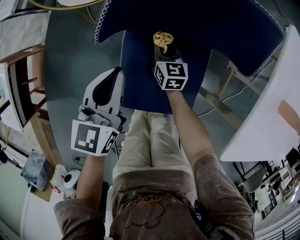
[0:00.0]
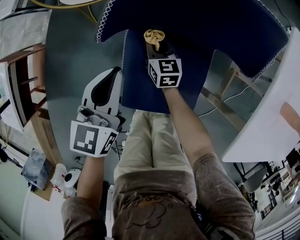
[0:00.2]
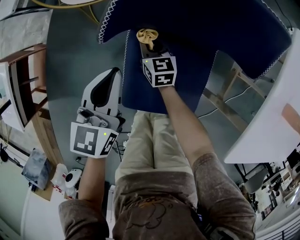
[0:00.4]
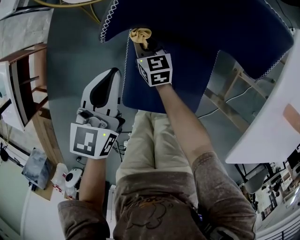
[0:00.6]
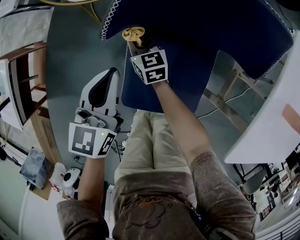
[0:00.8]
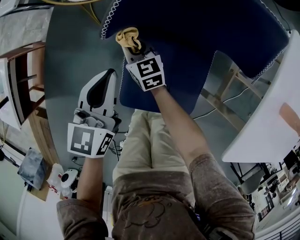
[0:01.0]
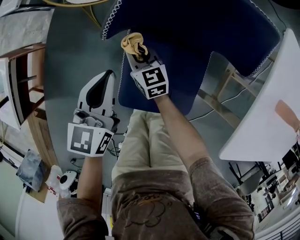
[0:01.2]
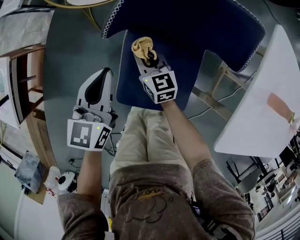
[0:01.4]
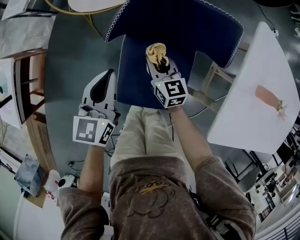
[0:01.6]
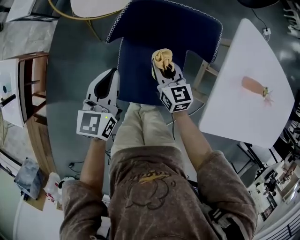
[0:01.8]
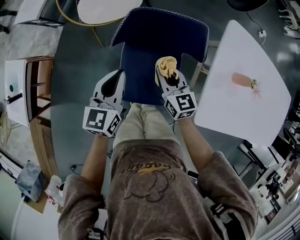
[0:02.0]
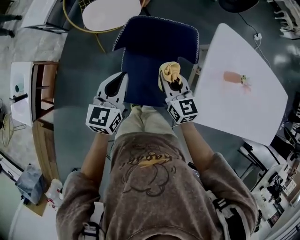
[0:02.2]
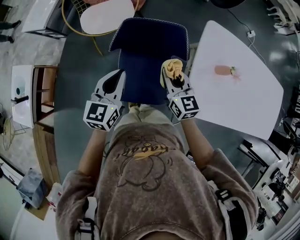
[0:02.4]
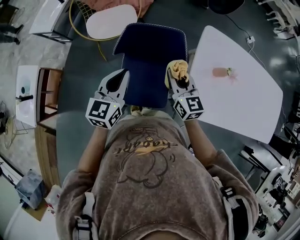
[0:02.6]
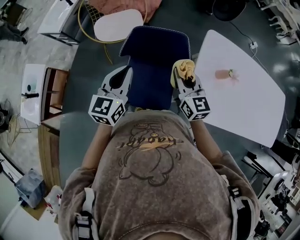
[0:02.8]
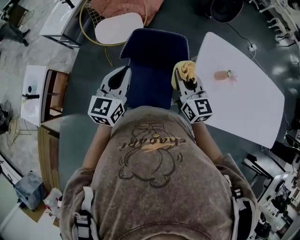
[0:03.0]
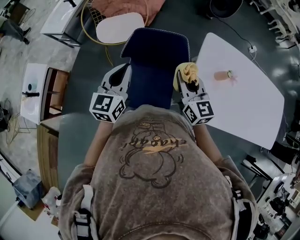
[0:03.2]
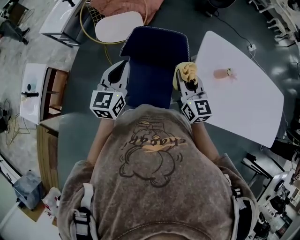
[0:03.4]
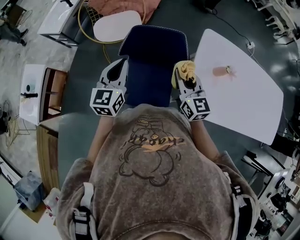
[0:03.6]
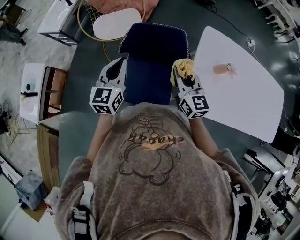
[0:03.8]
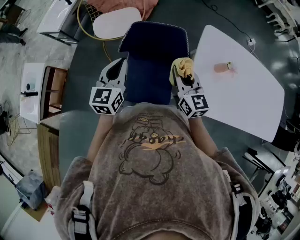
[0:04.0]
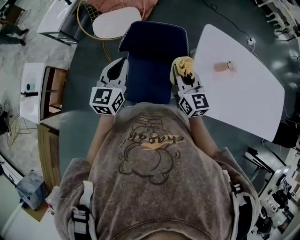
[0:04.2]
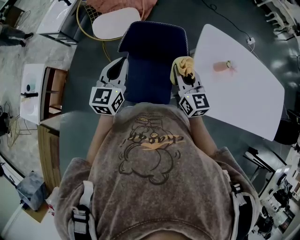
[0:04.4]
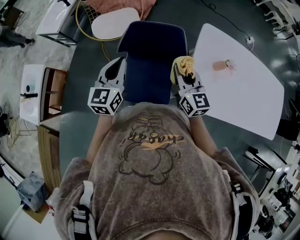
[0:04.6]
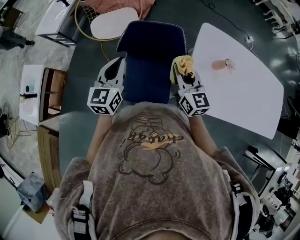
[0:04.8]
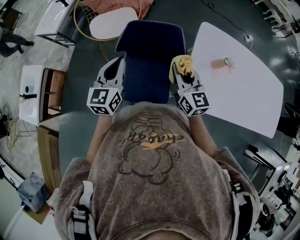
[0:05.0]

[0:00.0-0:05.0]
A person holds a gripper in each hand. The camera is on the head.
0.0 to 1.6 s: The right gripper moves upward, roughly 15 cm. The left gripper shifts some 5 cm upward.
1.6 to 3.4 s: Both grippers travel together upward, roughly 30 cm. The right gripper turns by about 20 degrees.
3.4 to 5.0 s: The grippers make only small movements.

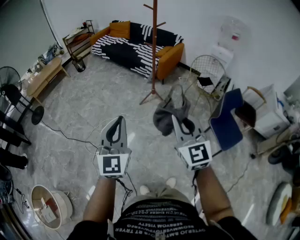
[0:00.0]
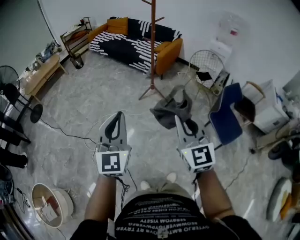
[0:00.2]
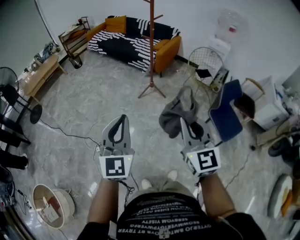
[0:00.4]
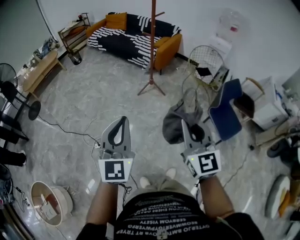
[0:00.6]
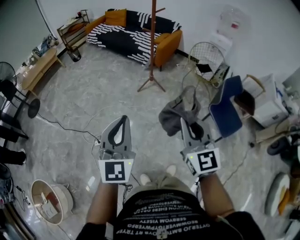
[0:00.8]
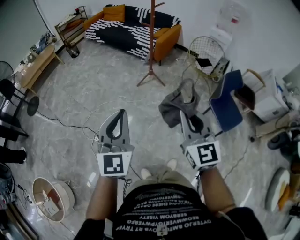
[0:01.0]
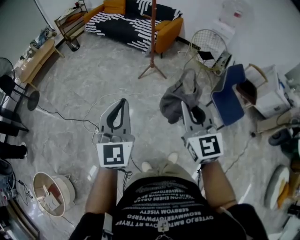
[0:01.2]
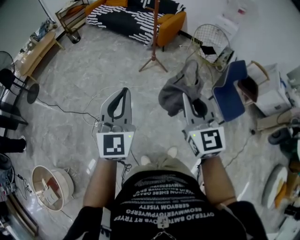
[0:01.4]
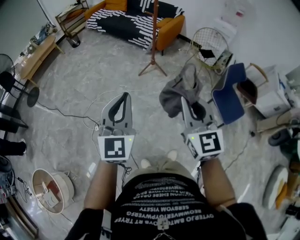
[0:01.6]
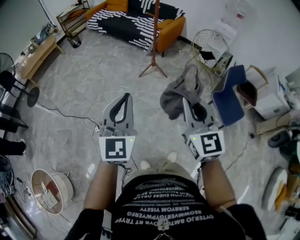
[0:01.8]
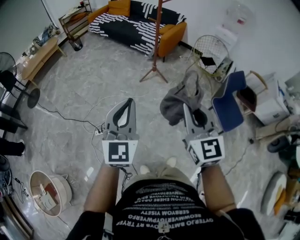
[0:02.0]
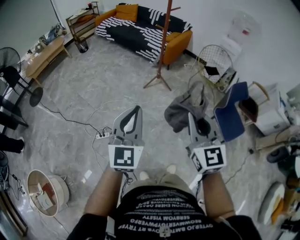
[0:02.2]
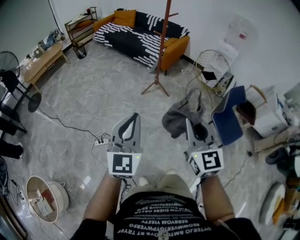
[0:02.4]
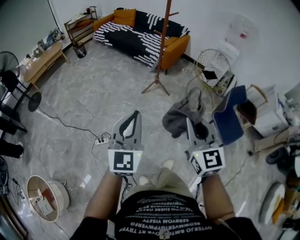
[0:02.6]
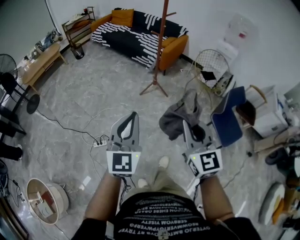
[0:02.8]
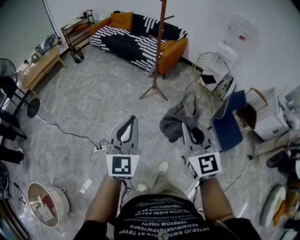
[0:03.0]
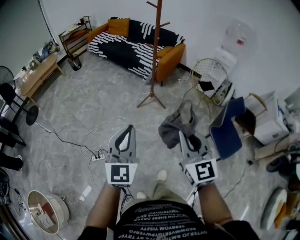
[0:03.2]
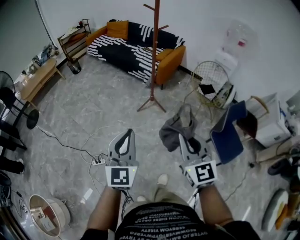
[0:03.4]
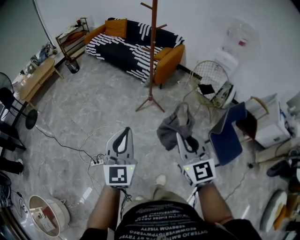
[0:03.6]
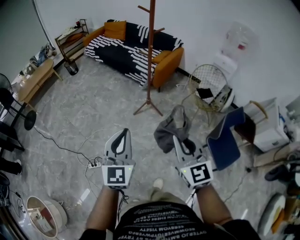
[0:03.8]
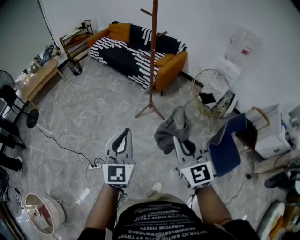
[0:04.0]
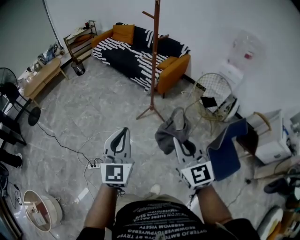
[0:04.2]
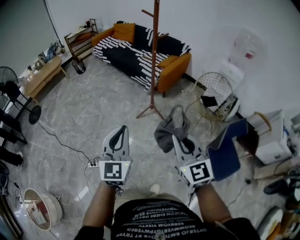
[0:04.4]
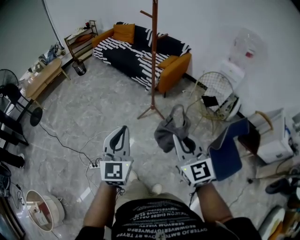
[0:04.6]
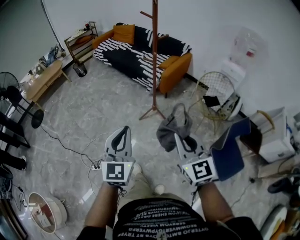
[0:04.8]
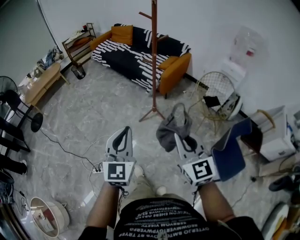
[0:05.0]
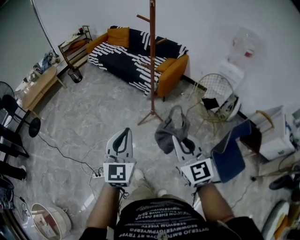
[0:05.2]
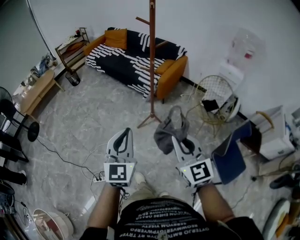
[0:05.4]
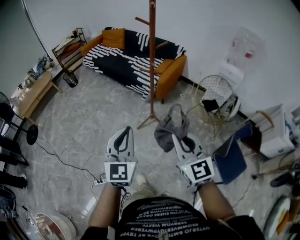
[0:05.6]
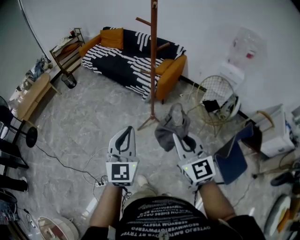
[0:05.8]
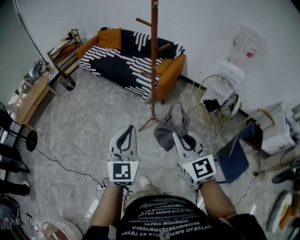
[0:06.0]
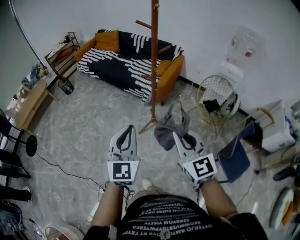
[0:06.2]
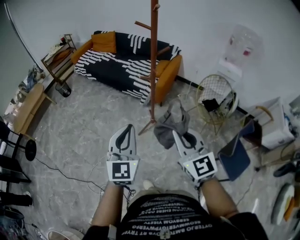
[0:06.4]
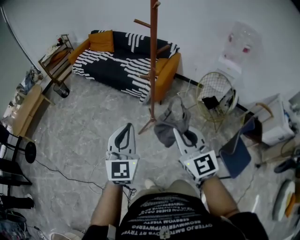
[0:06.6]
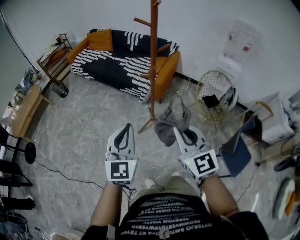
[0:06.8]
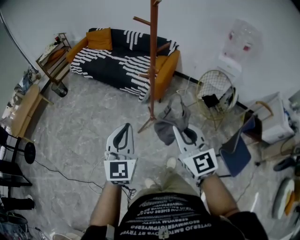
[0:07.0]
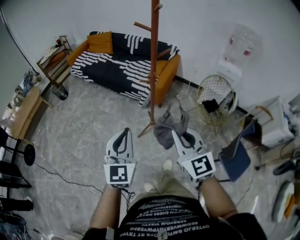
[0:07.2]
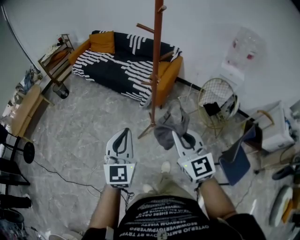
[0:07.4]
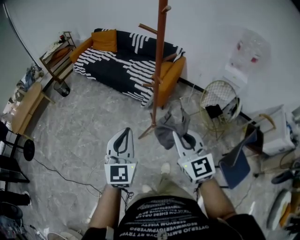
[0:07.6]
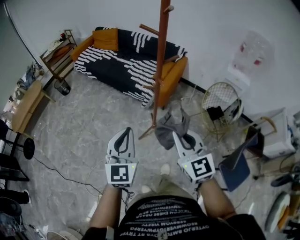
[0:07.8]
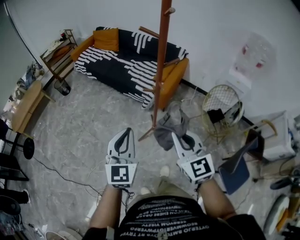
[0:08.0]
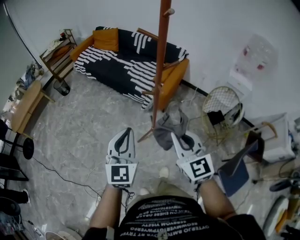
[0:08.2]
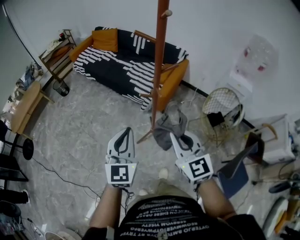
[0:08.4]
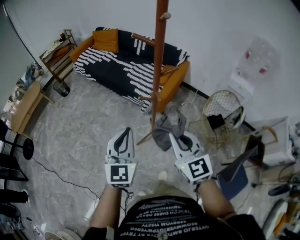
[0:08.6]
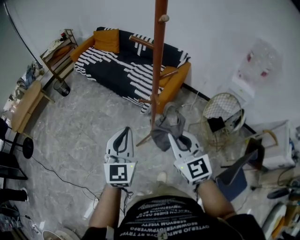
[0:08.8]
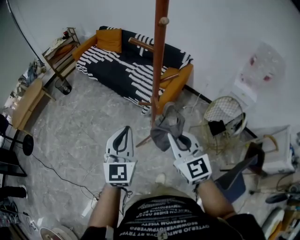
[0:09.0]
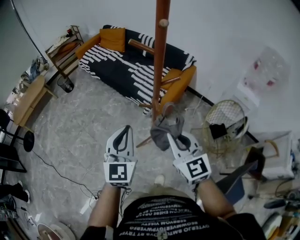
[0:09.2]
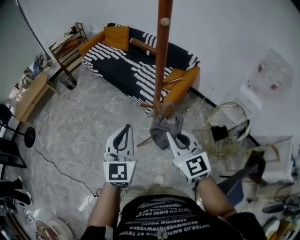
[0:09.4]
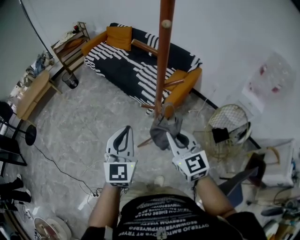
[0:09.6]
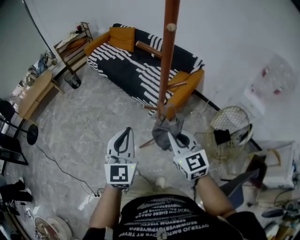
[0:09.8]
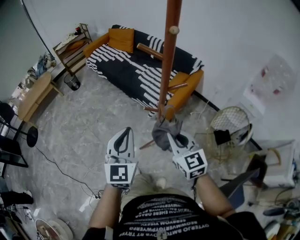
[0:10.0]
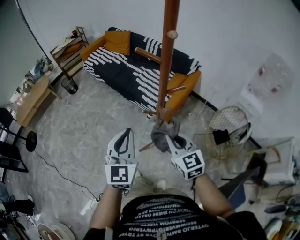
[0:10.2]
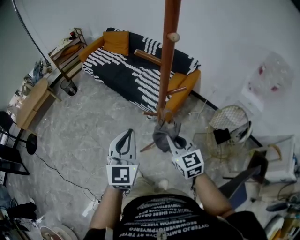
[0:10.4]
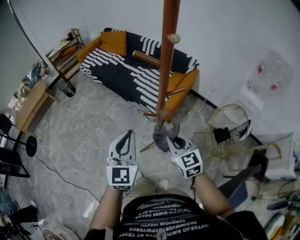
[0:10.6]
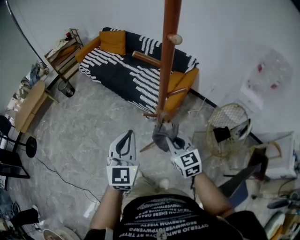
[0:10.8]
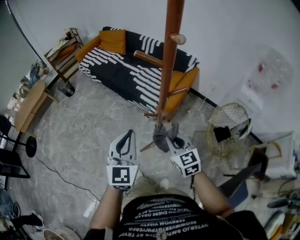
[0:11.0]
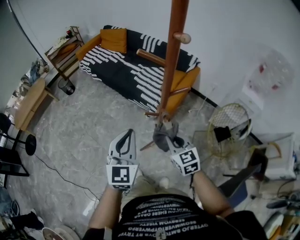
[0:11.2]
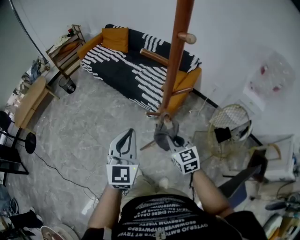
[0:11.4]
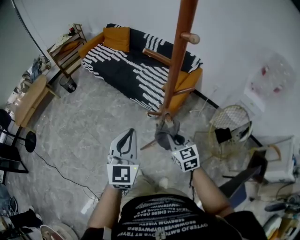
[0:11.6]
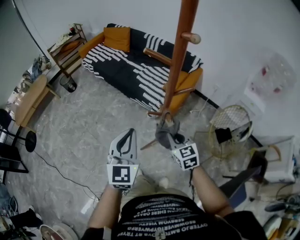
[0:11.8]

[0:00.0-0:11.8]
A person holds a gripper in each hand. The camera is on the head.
0.0 to 1.4 s: The right gripper shifts by some 5 cm.
1.4 to 3.0 s: Both grippers move forward, roughly 5 cm.
3.0 to 4.4 s: The two grippers go roughly 20 cm forward and to the right.
4.4 to 6.0 s: Both grippers travel together forward, about 20 cm.
6.0 to 7.4 s: The grippers both shift forward by roughly 10 cm.
7.4 to 8.8 s: The right gripper goes some 15 cm forward. The left gripper heads forward and to the right, covering some 15 cm.
8.8 to 10.4 s: The left gripper shifts approximately 5 cm forward. The right gripper goes about 10 cm forward and downward.
10.4 to 11.8 s: The right gripper travels downward by approximately 10 cm.

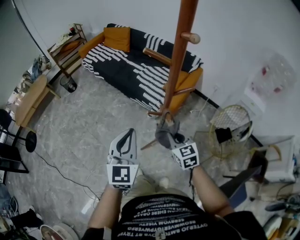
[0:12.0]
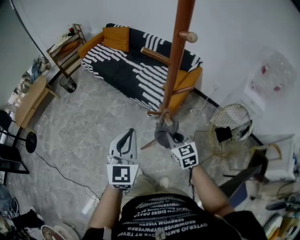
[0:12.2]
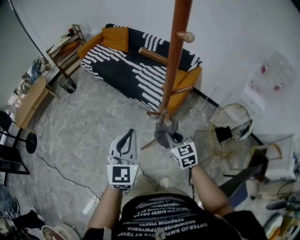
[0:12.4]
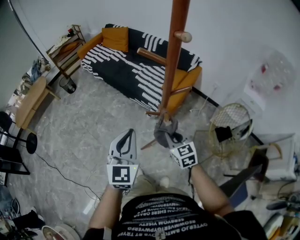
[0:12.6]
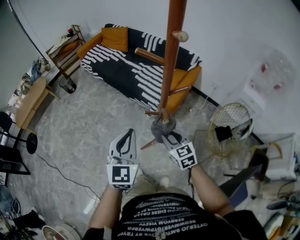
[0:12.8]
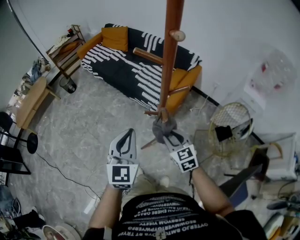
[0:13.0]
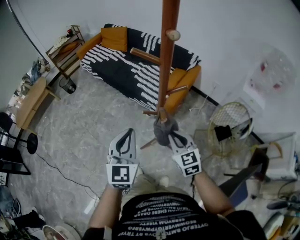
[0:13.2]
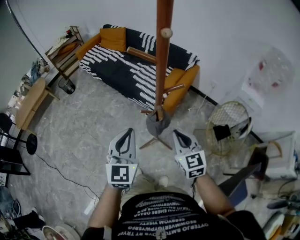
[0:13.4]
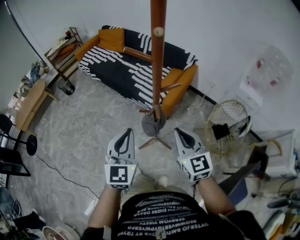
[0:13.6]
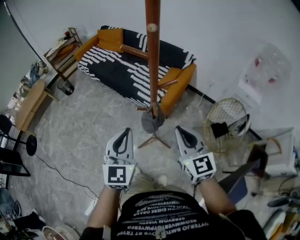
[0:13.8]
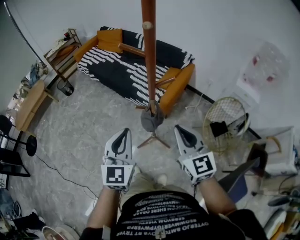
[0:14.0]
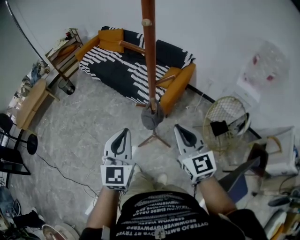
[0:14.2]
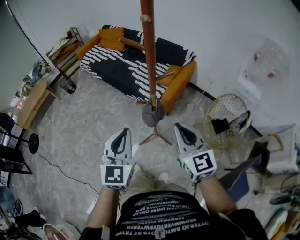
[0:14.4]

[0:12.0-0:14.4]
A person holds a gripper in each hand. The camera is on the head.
12.0 to 13.2 s: The right gripper moves about 5 cm.
13.2 to 14.4 s: The left gripper travels backward by some 5 cm. Meanwhile the right gripper shifts approximately 15 cm upward and backward.

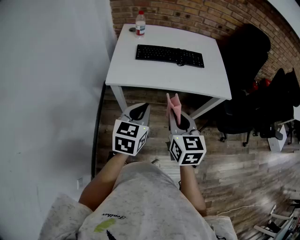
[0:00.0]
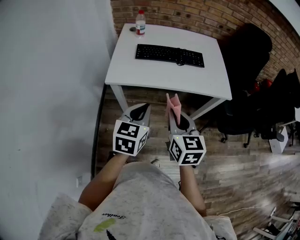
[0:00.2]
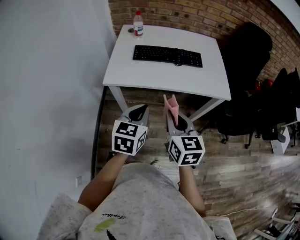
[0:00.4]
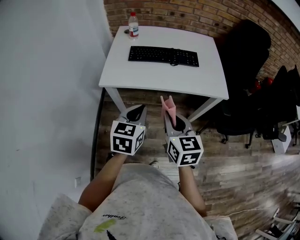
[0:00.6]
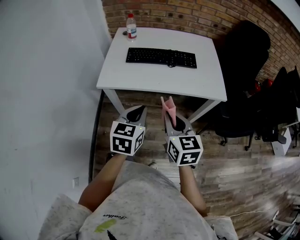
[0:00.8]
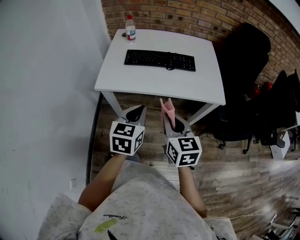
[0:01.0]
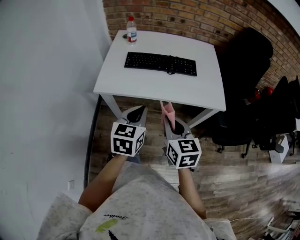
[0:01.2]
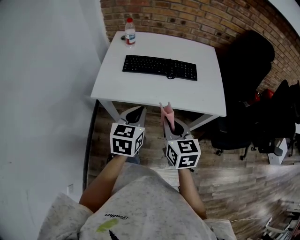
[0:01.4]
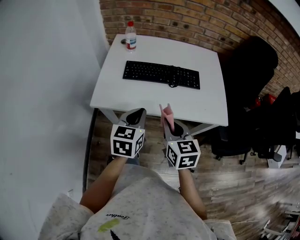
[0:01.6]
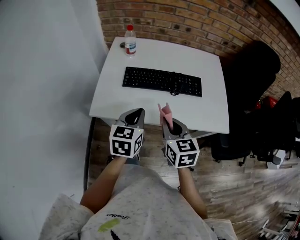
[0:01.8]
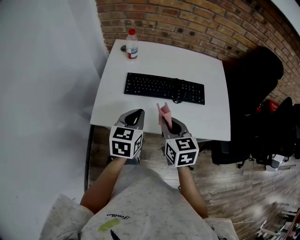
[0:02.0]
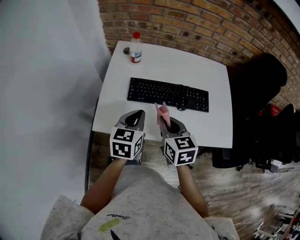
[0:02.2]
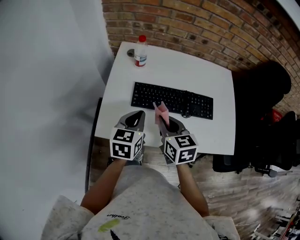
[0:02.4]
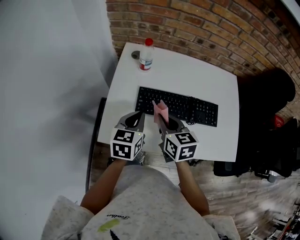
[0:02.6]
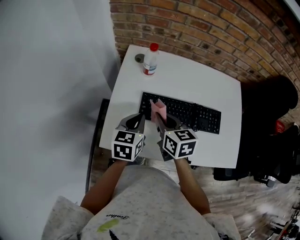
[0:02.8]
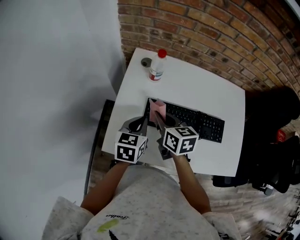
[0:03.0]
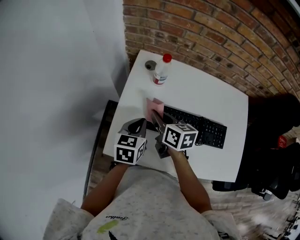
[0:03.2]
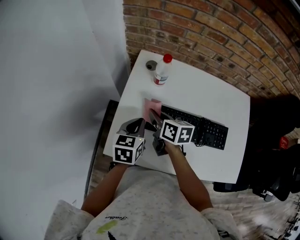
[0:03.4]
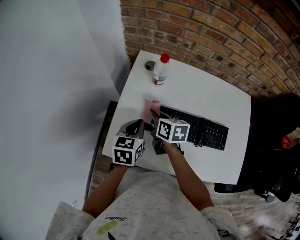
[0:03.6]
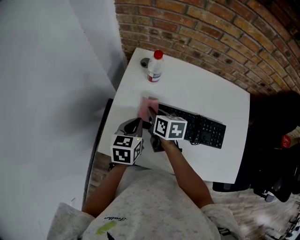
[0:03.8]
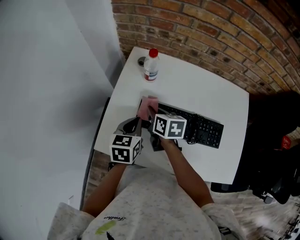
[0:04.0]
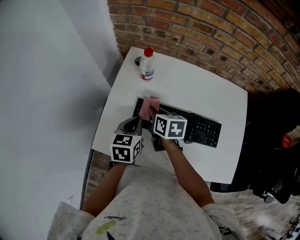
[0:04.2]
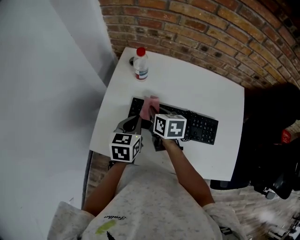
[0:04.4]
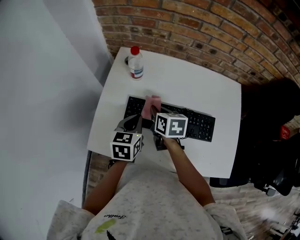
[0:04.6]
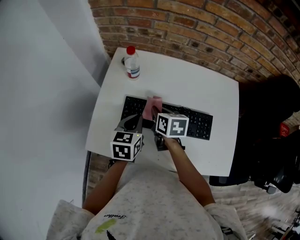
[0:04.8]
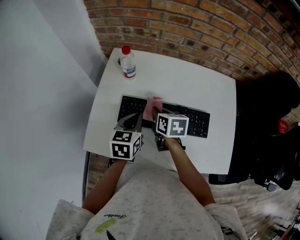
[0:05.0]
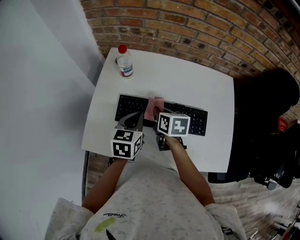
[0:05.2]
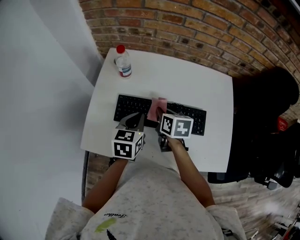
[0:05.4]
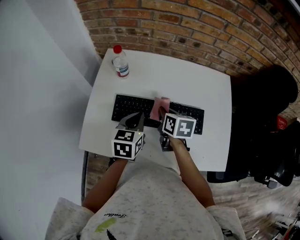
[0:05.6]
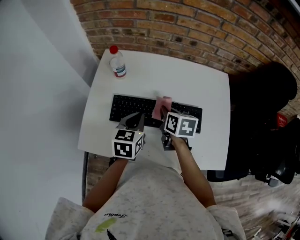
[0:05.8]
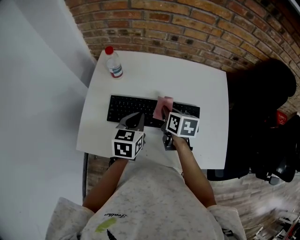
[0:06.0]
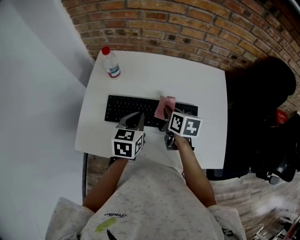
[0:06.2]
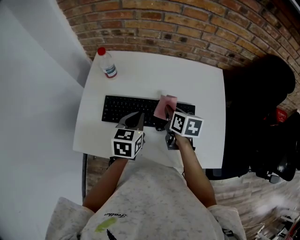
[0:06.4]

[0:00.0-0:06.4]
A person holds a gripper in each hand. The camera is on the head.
0.0 to 1.6 s: The two grippers go about 15 cm forward.
1.6 to 3.2 s: The grippers both shift forward and to the left by approximately 35 cm. The right gripper changes its angle by approximately 30 degrees.
3.2 to 4.8 s: Both grippers travel together to the right, about 10 cm.
4.8 to 6.4 s: The right gripper moves to the right, roughly 15 cm; the left gripper travels to the right by roughly 10 cm.
